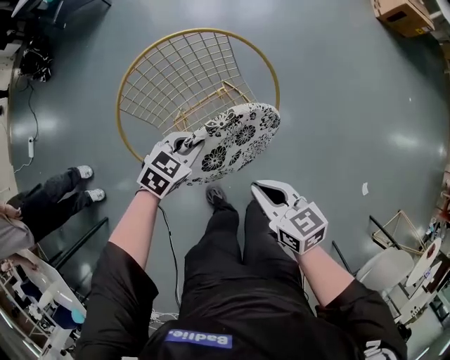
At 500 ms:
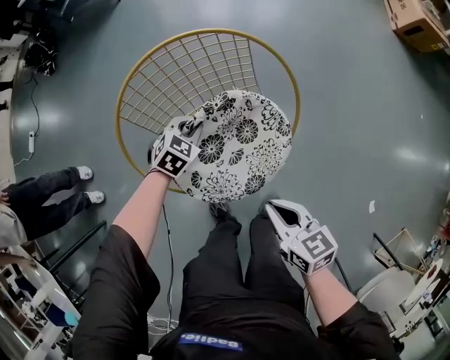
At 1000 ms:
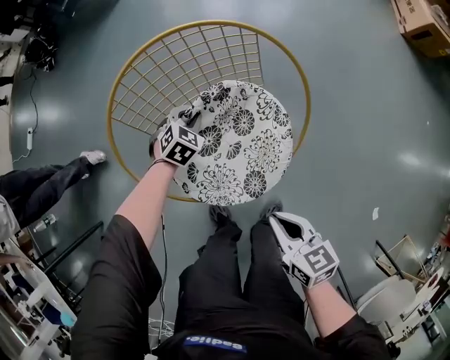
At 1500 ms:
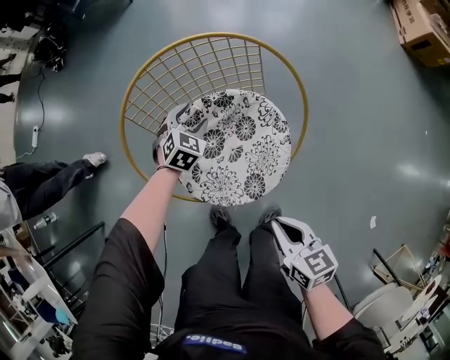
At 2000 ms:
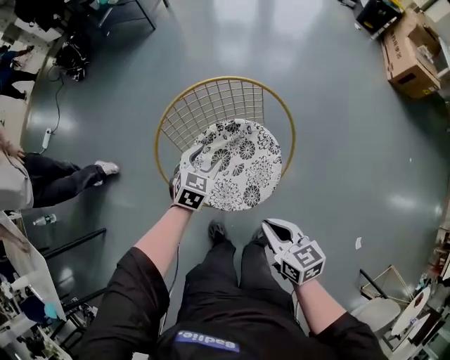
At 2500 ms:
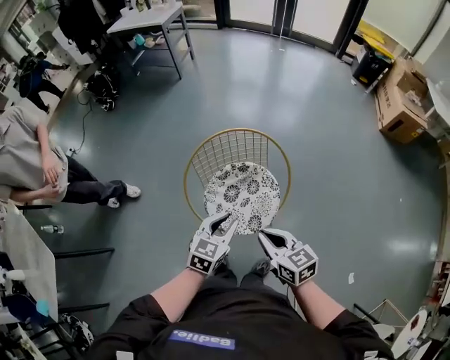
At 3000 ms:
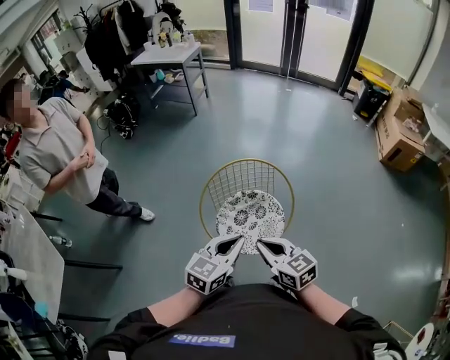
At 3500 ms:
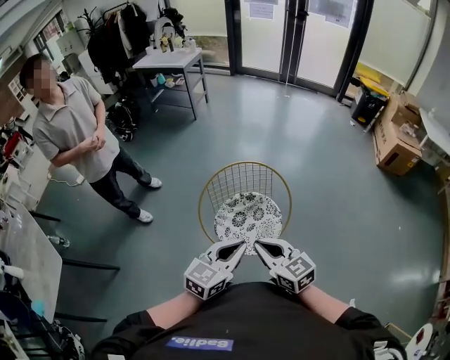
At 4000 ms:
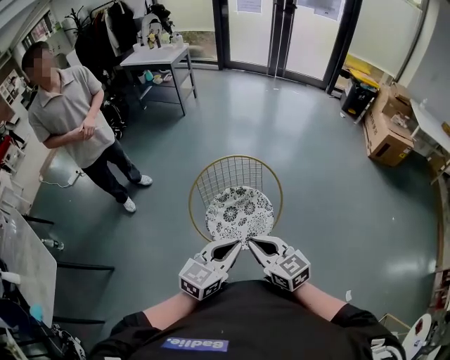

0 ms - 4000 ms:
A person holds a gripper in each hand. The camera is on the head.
0 ms - 2000 ms: The right gripper reaches roughly 10 cm downward, then returns; the left gripper travels forward by some 5 cm, travels downward and back again, roughly 20 cm each way, rotates some 30 degrees, and opens up.
2000 ms - 4000 ms: The right gripper heads upward, covering approximately 25 cm, and turns by roughly 30 degrees; the left gripper moves upward and backward, roughly 40 cm, turns by about 30 degrees, and closes up.

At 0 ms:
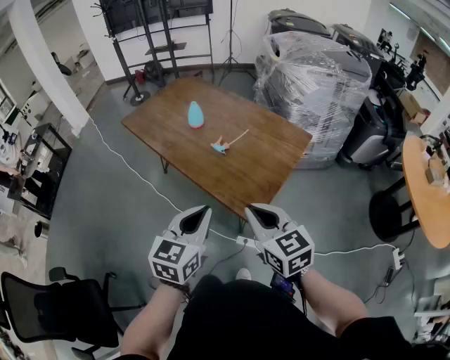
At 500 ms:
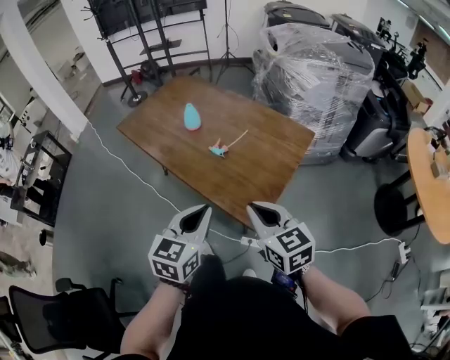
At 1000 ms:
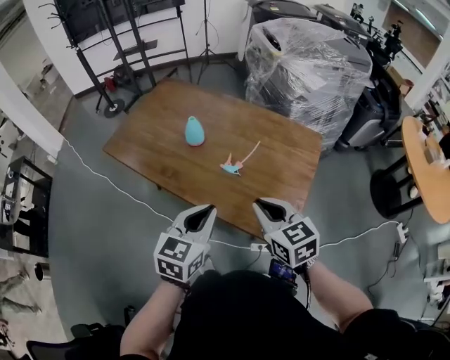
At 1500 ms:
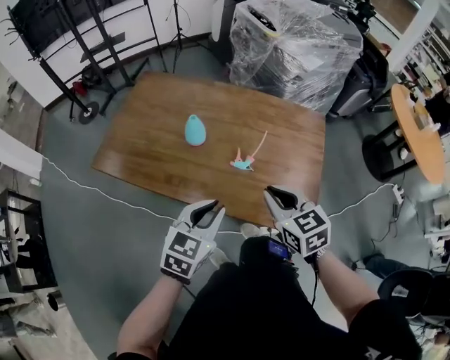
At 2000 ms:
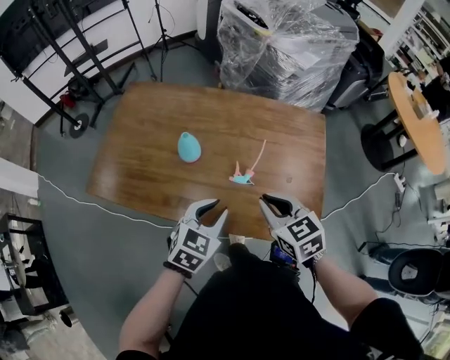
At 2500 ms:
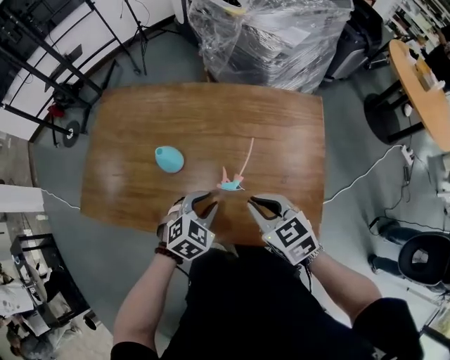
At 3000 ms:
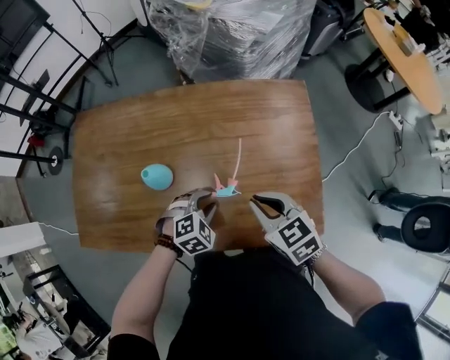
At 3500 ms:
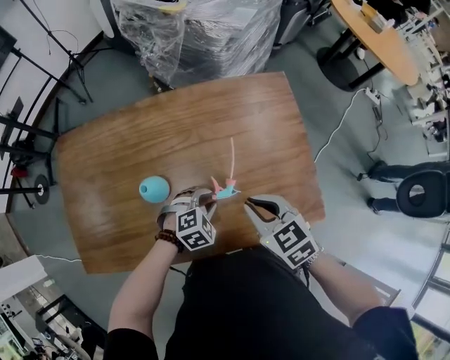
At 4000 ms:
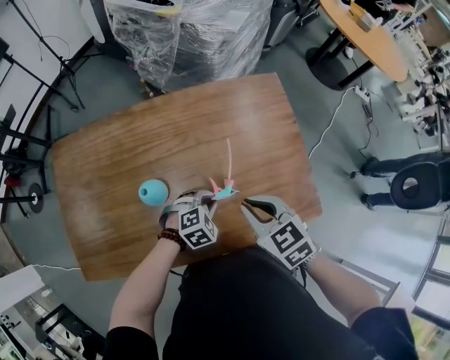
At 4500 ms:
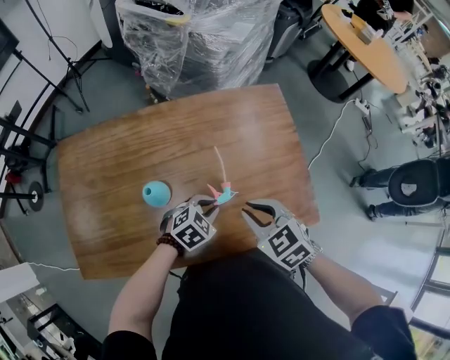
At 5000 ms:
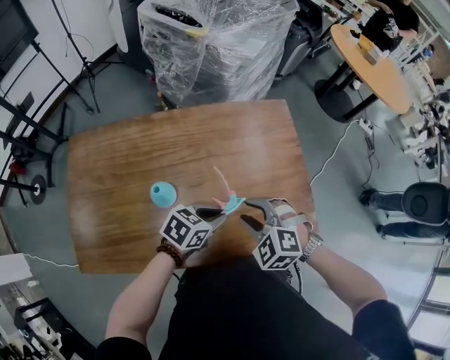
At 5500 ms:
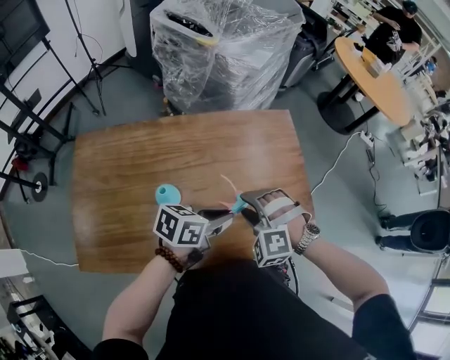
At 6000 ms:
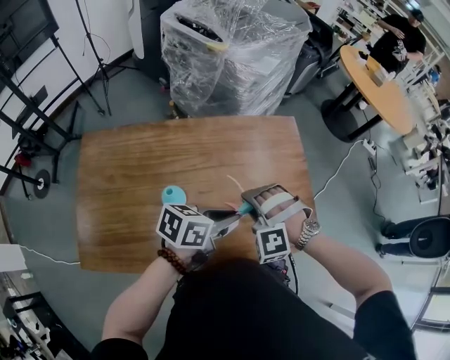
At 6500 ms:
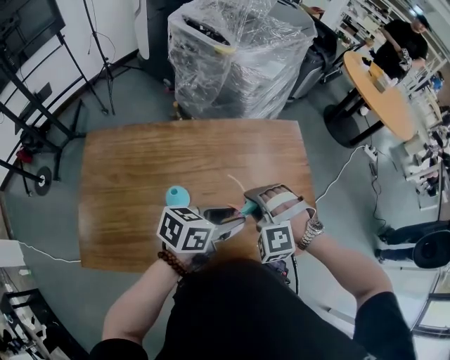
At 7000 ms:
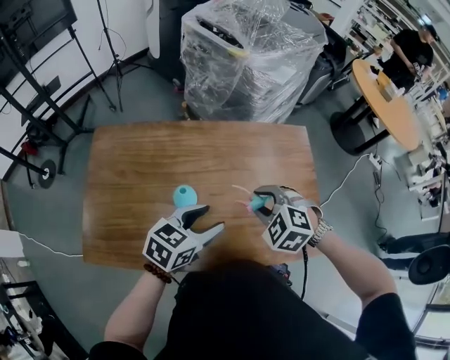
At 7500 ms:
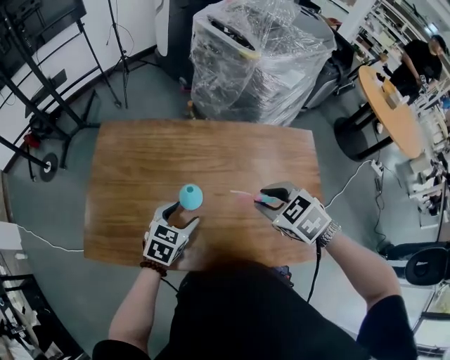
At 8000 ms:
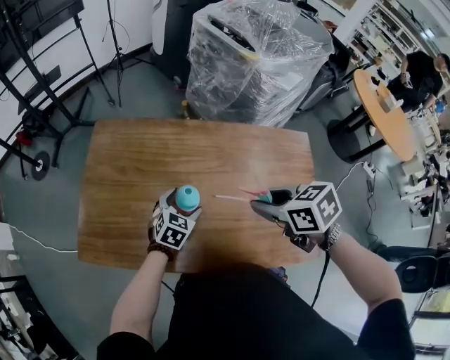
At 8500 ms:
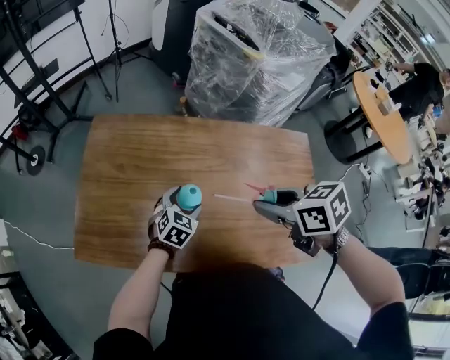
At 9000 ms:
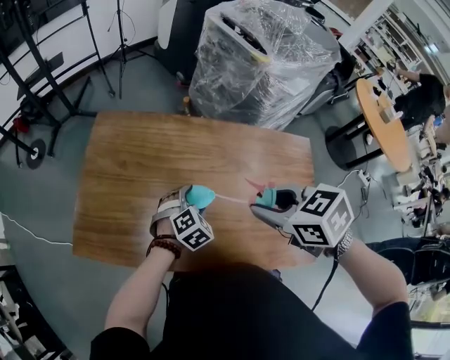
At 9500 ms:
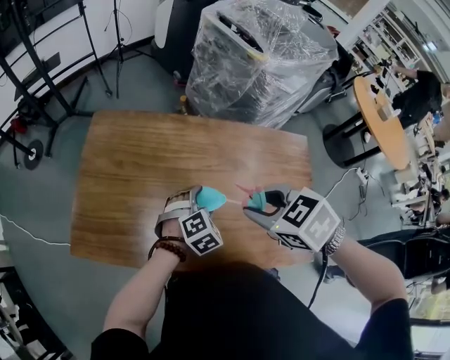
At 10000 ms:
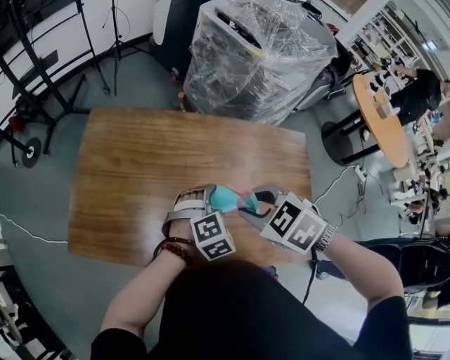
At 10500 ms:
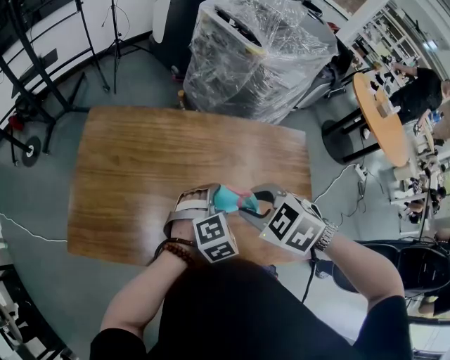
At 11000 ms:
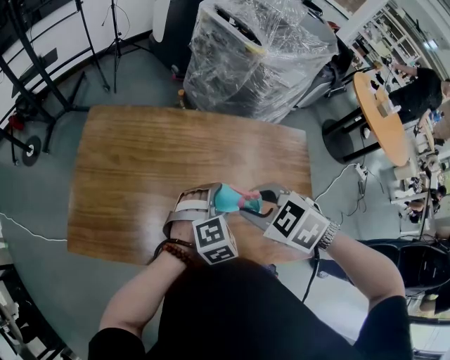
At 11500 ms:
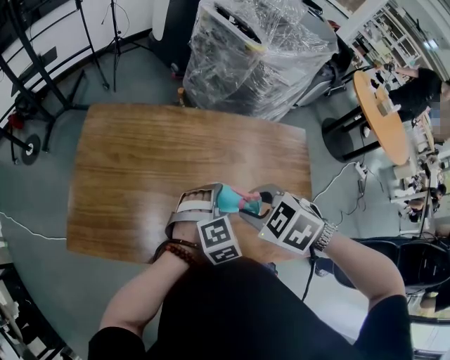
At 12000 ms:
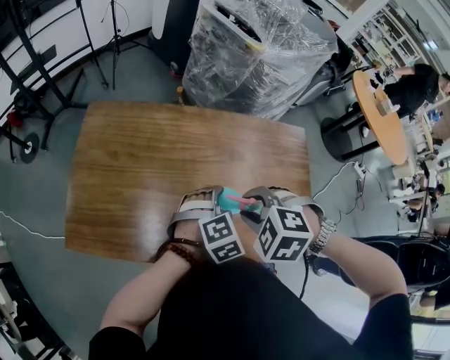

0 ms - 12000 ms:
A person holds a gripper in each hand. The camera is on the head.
0 ms - 2000 ms: The right gripper shifts by some 30 cm, and swivels about 30 degrees; the left gripper moves some 35 cm, and swivels some 50 degrees.
2000 ms - 4000 ms: The left gripper is displaced downward by some 15 cm, and swivels some 60 degrees. Meanwhile the right gripper ends up some 5 cm from where it was.
4000 ms - 6000 ms: The right gripper goes about 5 cm to the left, rotates around the line of its fingers by approximately 80 degrees, counterclockwise from behind, and opens; the left gripper travels upward by approximately 20 cm, and rolls counterclockwise, seen from behind, by roughly 60 degrees.
6000 ms - 8000 ms: The left gripper shifts by approximately 25 cm, turns by about 50 degrees, and opens. Meanwhile the right gripper shifts approximately 10 cm upward, and rolls clockwise, seen from behind, by roughly 80 degrees.
8000 ms - 10000 ms: The left gripper is displaced to the right, upward and backward by roughly 10 cm, and rotates some 30 degrees, while the right gripper turns by about 40 degrees.
10000 ms - 12000 ms: The right gripper turns by roughly 20 degrees.

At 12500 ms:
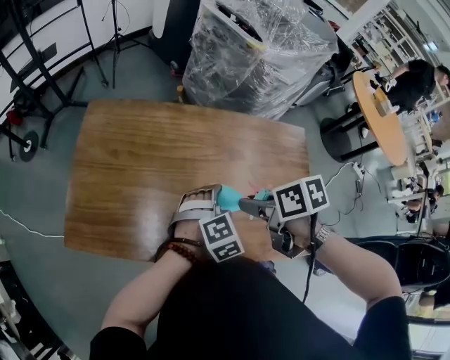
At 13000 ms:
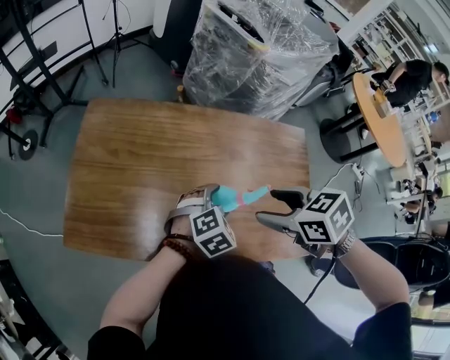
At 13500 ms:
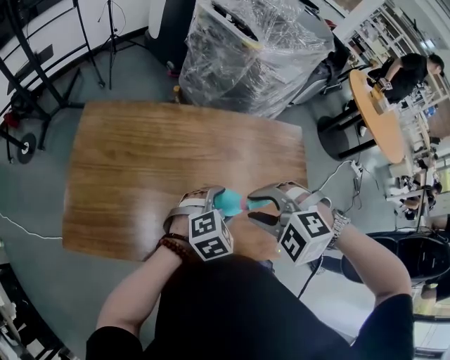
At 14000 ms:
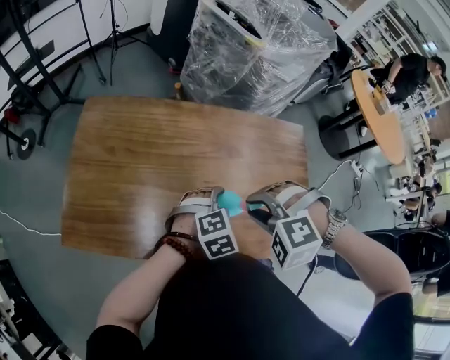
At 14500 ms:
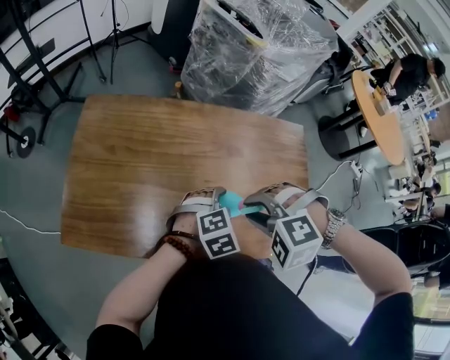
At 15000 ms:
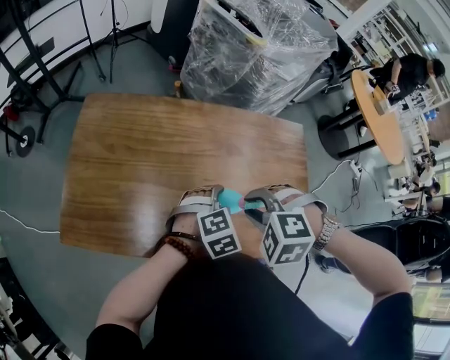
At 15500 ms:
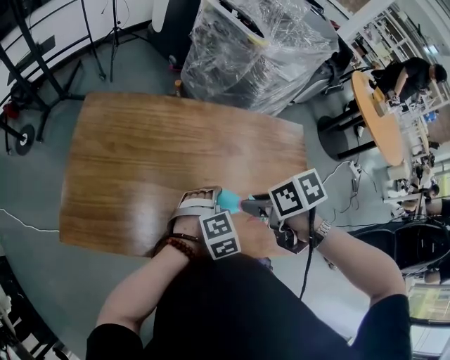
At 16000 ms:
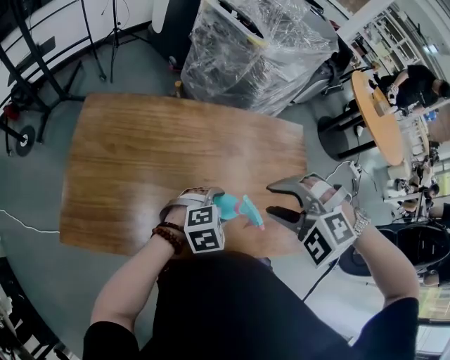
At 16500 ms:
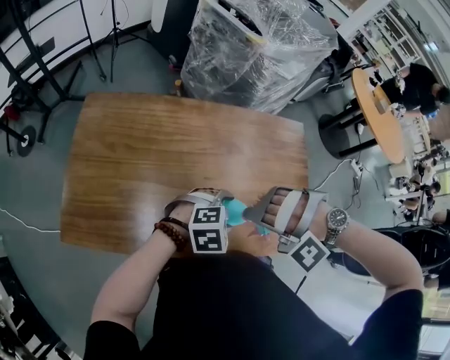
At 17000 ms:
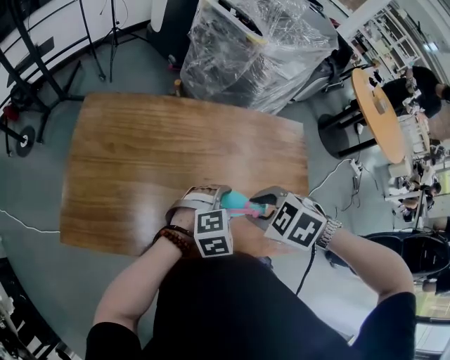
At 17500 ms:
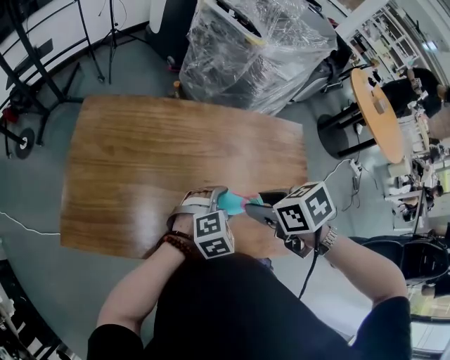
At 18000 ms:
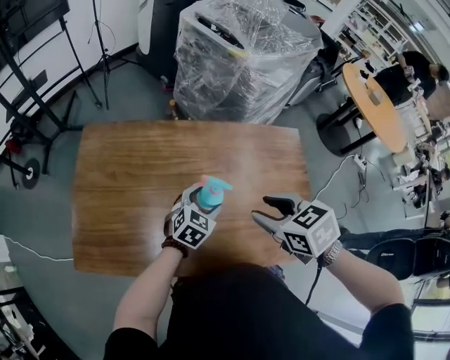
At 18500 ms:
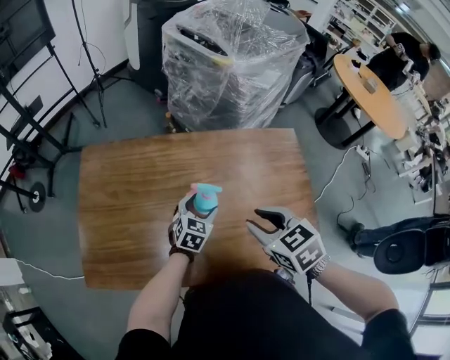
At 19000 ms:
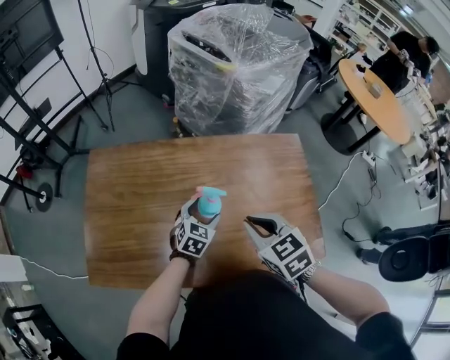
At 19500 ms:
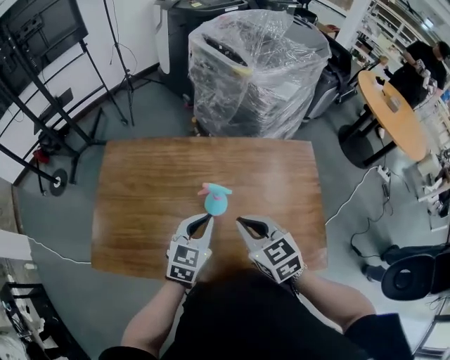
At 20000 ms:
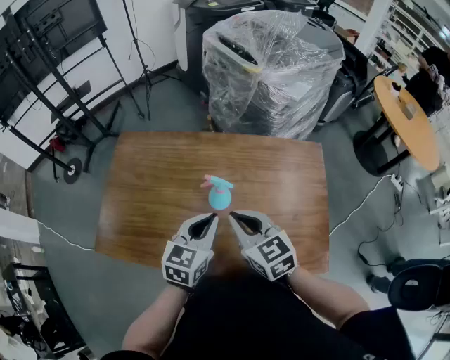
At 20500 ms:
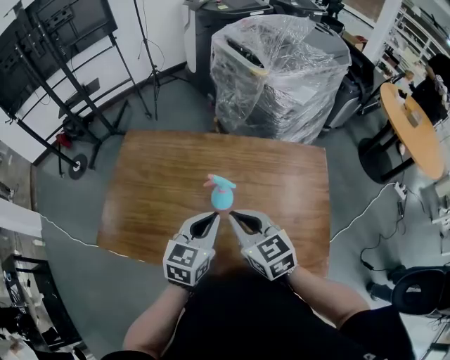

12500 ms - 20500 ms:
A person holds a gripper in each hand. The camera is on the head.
12500 ms - 14500 ms: The right gripper rolls counterclockwise, seen from behind, by roughly 100 degrees, and opens, then closes once more.
14500 ms - 16500 ms: The right gripper reaches some 5 cm upward, then returns, and twists approximately 40 degrees counterclockwise, seen from behind.
16500 ms - 18500 ms: The right gripper moves some 10 cm, and rolls clockwise, seen from behind, by approximately 120 degrees. Meanwhile the left gripper moves some 15 cm, and changes its angle by about 50 degrees.
18500 ms - 20500 ms: The right gripper heads to the left, covering some 5 cm, changes its angle by roughly 30 degrees, and closes up. Meanwhile the left gripper goes some 20 cm upward and backward, turns by approximately 20 degrees, and closes up.

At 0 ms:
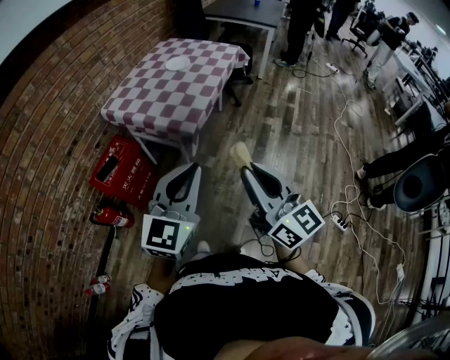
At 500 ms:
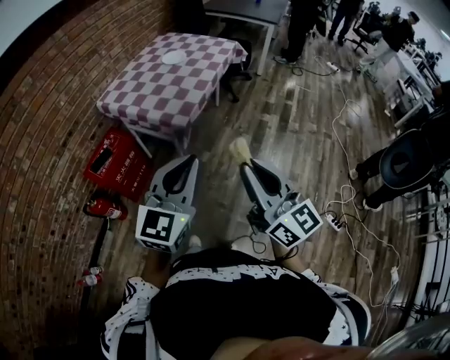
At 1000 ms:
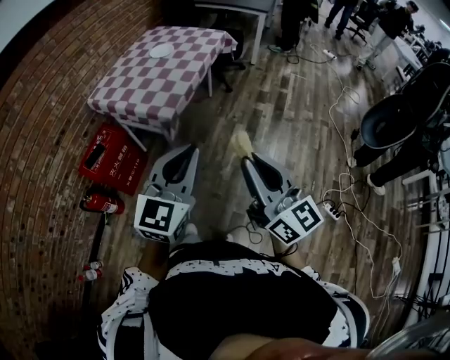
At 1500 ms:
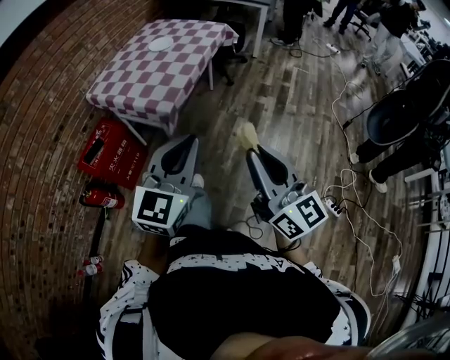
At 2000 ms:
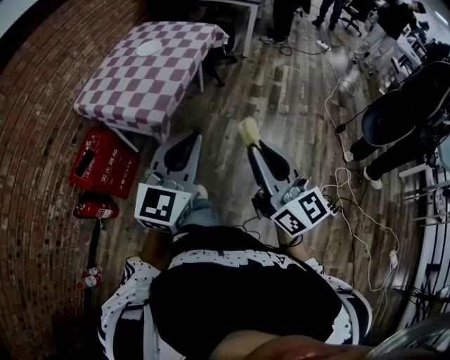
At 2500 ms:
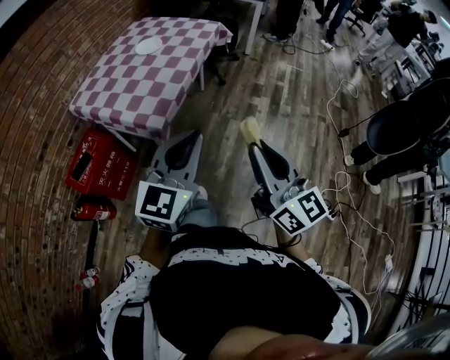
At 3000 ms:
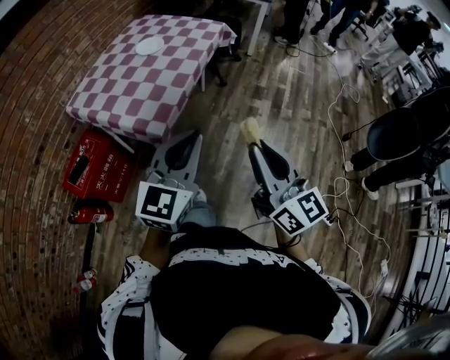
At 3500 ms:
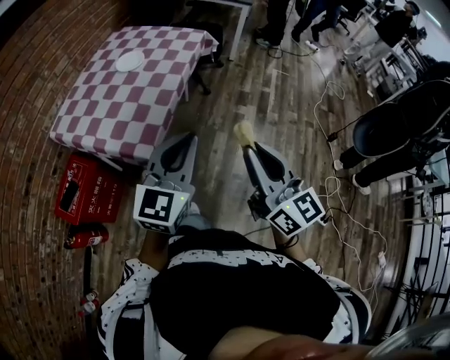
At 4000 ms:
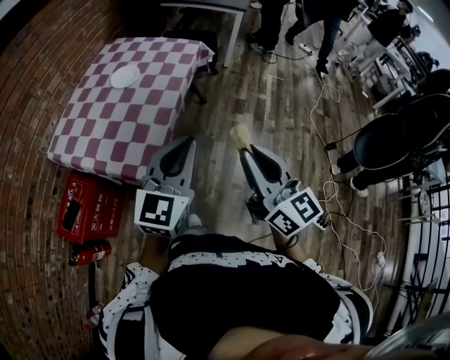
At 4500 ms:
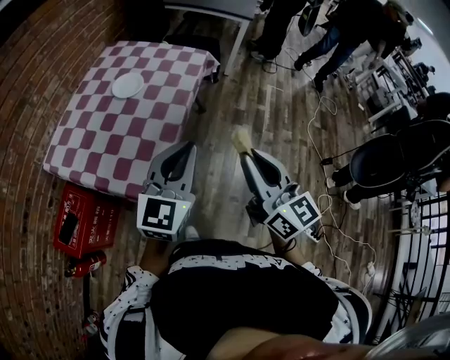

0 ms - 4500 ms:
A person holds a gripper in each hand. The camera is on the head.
0 ms - 2000 ms: The left gripper travels to the right and forward by about 15 cm, while the right gripper moves to the right, approximately 15 cm.
2000 ms - 4500 ms: The two grippers go some 30 cm forward.
